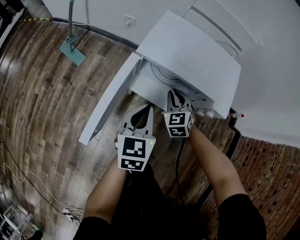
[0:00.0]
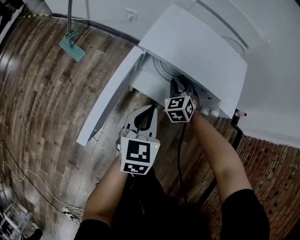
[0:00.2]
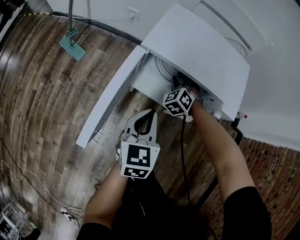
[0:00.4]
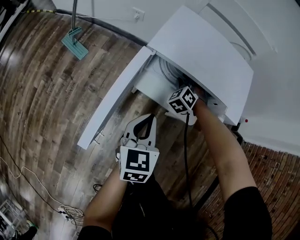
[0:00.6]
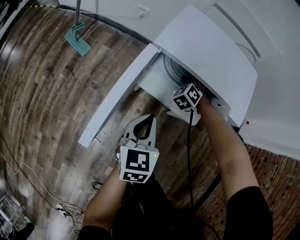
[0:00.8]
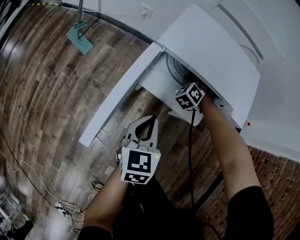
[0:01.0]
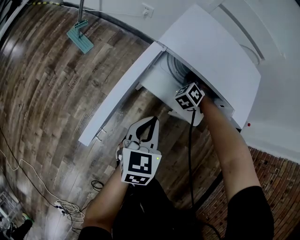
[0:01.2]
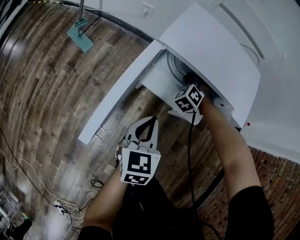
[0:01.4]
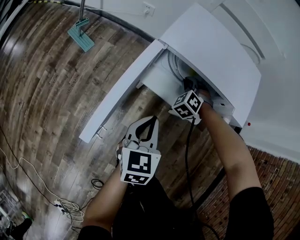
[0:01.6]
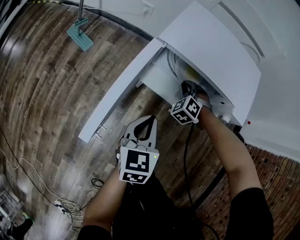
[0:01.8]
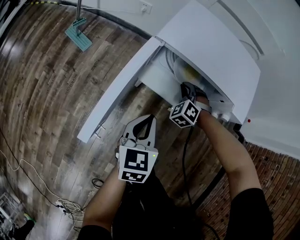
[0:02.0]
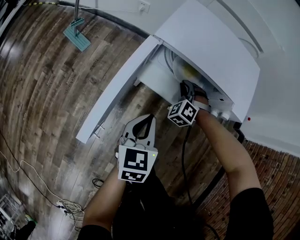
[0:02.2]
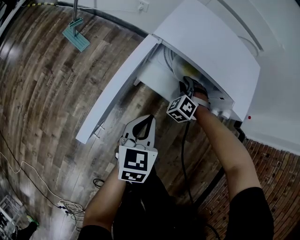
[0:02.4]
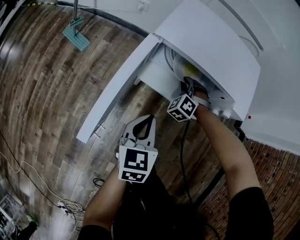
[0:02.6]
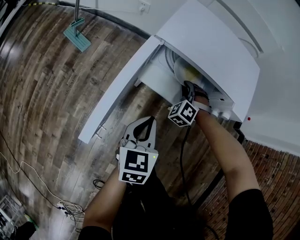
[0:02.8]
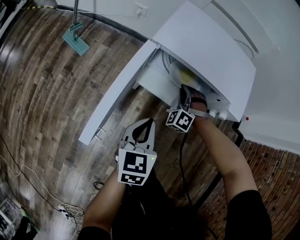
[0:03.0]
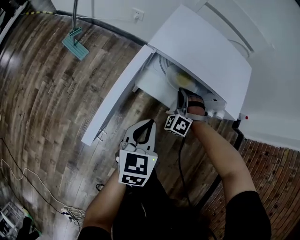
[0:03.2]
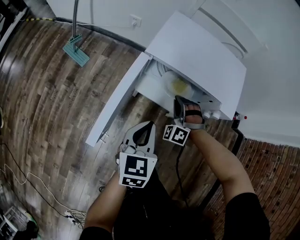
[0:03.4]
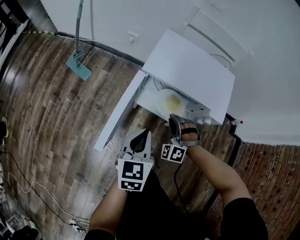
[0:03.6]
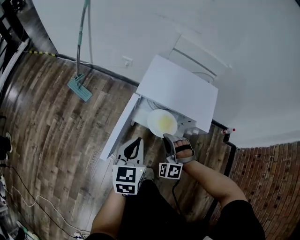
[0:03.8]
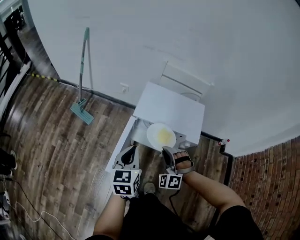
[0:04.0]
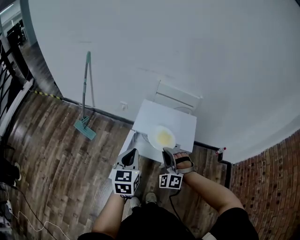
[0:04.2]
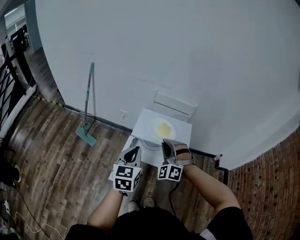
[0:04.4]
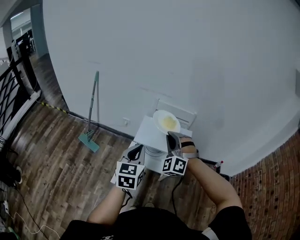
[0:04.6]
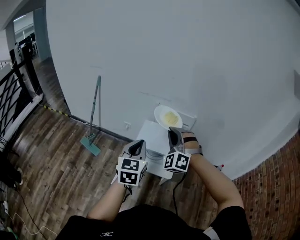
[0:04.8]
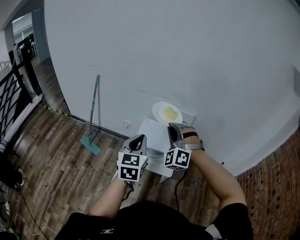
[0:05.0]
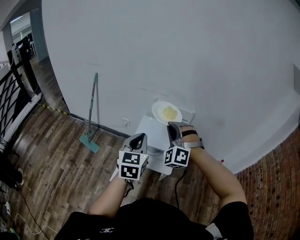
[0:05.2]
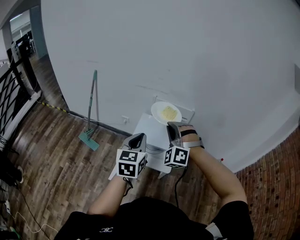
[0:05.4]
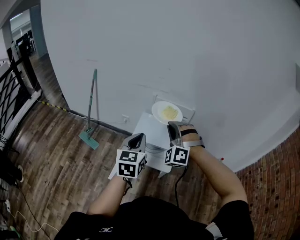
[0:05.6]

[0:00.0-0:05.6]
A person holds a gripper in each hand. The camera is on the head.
0.0 to 1.4 s: The right gripper travels downward and forward by some 10 cm, and rotates about 40 degrees; the left gripper shifts about 5 cm downward.
1.4 to 2.8 s: The right gripper moves backward, some 5 cm.
2.8 to 4.2 s: The two grippers go roughly 35 cm upward. The right gripper swivels roughly 20 degrees.
4.2 to 5.6 s: Both grippers travel together upward, approximately 15 cm.

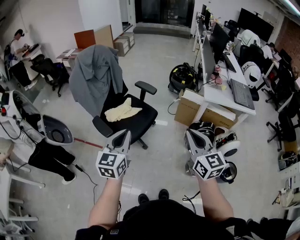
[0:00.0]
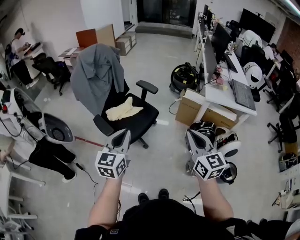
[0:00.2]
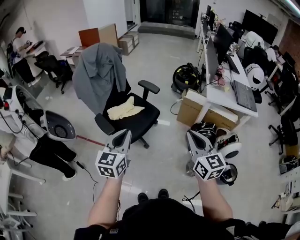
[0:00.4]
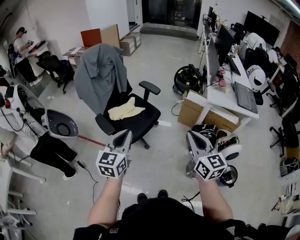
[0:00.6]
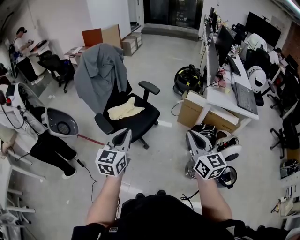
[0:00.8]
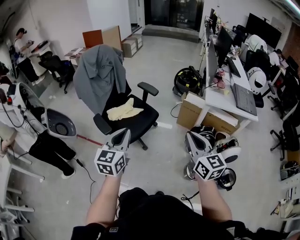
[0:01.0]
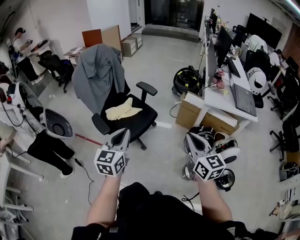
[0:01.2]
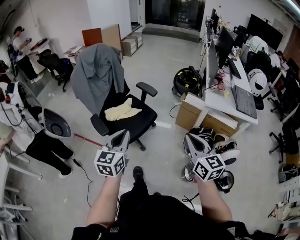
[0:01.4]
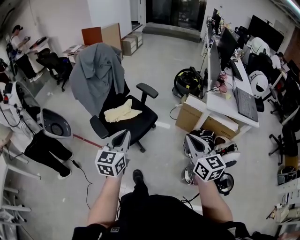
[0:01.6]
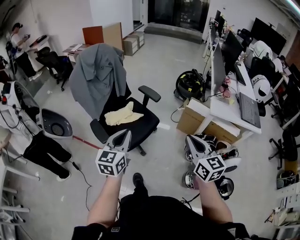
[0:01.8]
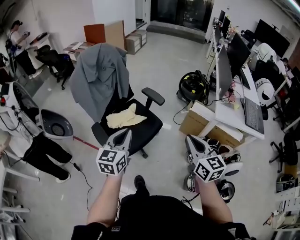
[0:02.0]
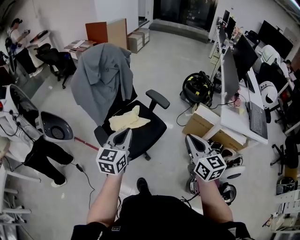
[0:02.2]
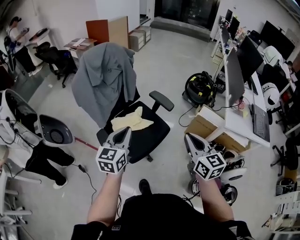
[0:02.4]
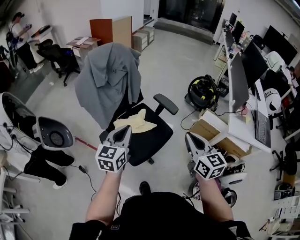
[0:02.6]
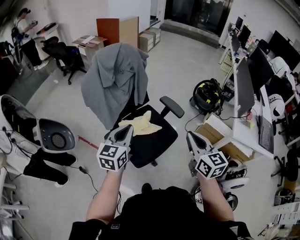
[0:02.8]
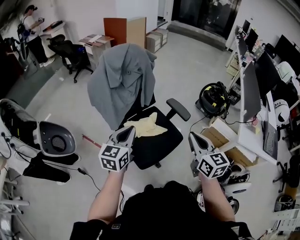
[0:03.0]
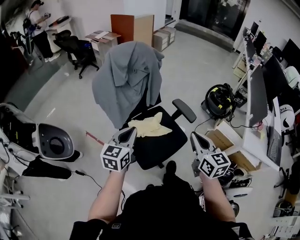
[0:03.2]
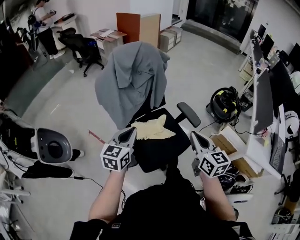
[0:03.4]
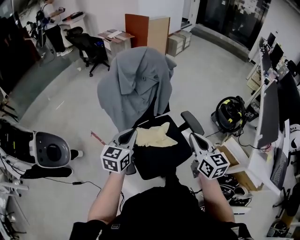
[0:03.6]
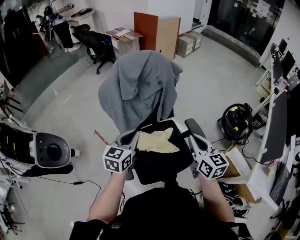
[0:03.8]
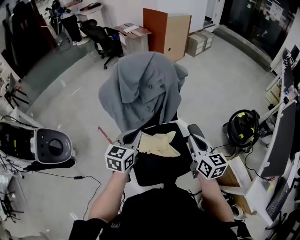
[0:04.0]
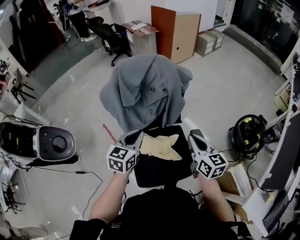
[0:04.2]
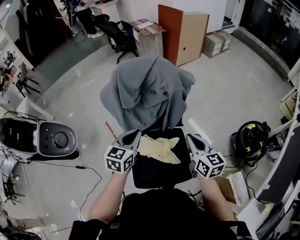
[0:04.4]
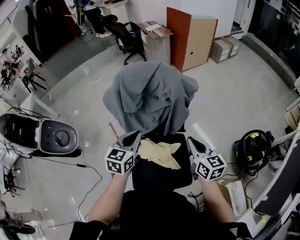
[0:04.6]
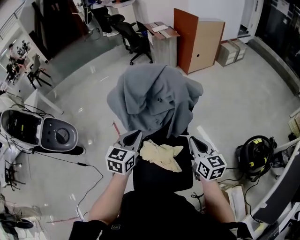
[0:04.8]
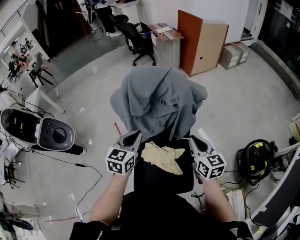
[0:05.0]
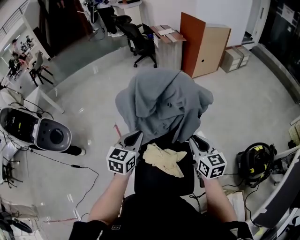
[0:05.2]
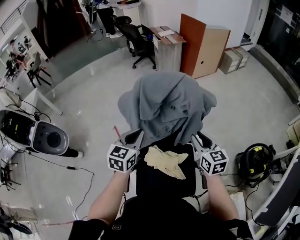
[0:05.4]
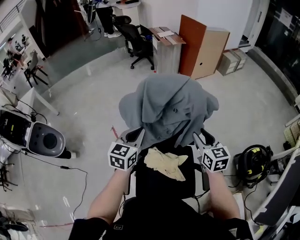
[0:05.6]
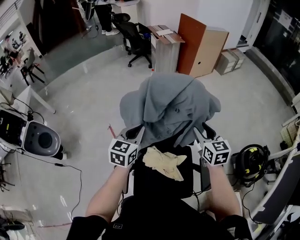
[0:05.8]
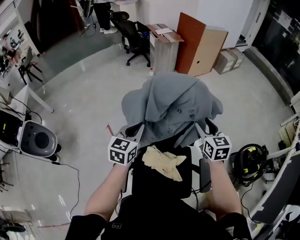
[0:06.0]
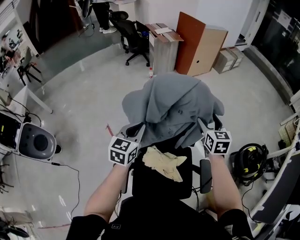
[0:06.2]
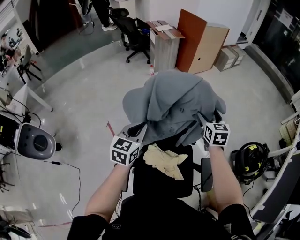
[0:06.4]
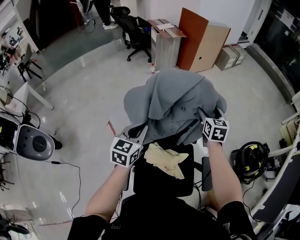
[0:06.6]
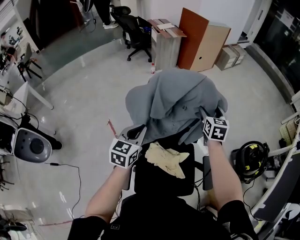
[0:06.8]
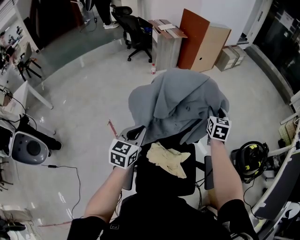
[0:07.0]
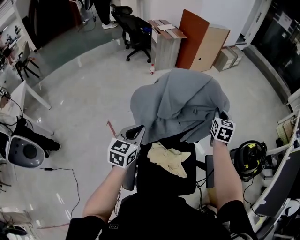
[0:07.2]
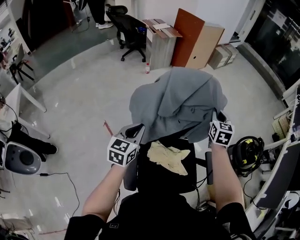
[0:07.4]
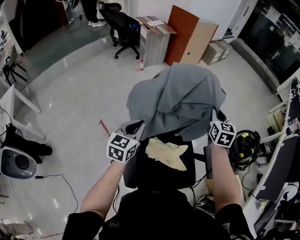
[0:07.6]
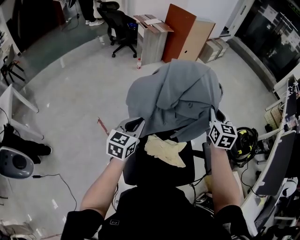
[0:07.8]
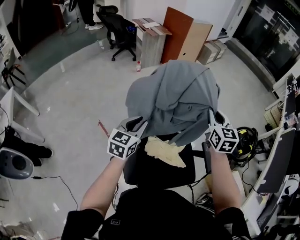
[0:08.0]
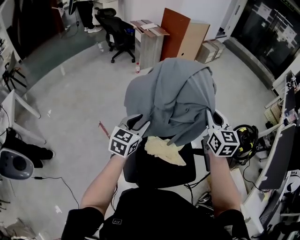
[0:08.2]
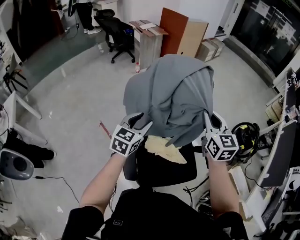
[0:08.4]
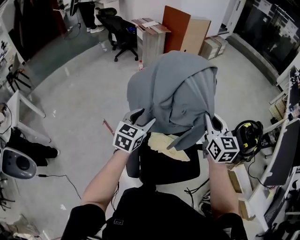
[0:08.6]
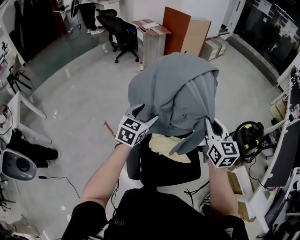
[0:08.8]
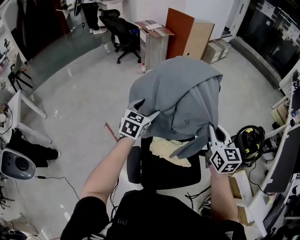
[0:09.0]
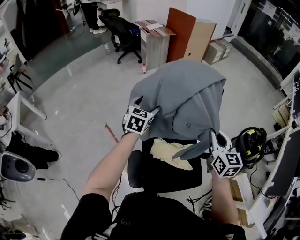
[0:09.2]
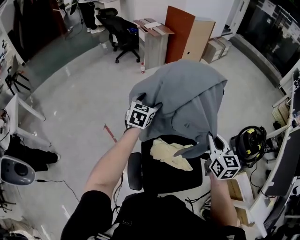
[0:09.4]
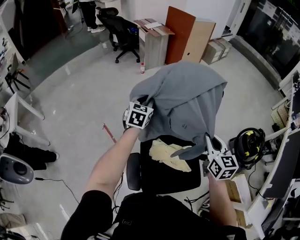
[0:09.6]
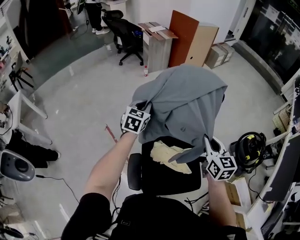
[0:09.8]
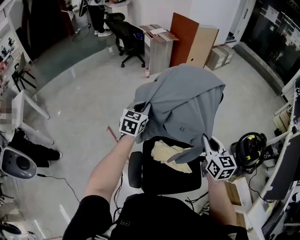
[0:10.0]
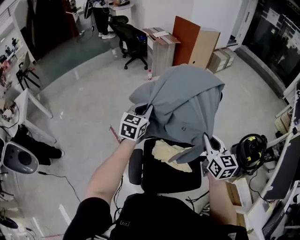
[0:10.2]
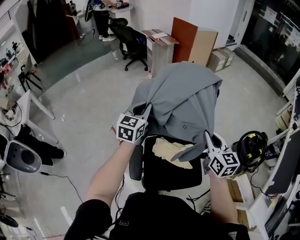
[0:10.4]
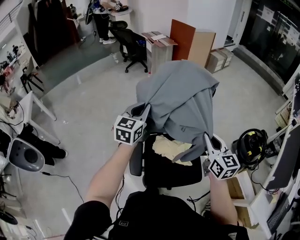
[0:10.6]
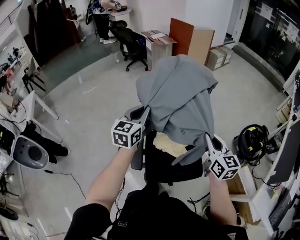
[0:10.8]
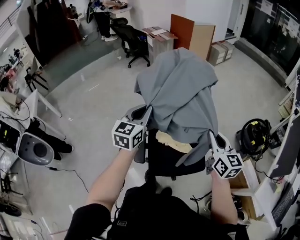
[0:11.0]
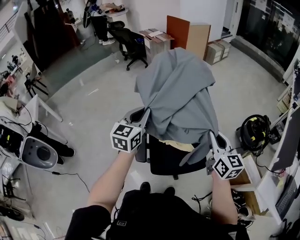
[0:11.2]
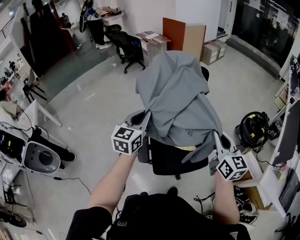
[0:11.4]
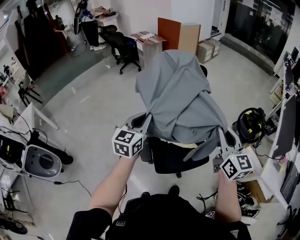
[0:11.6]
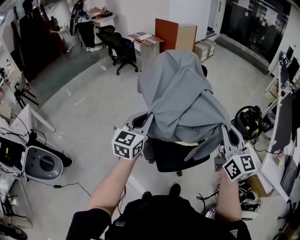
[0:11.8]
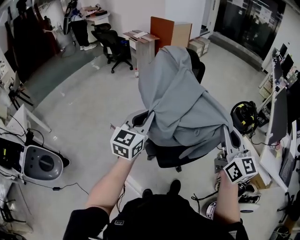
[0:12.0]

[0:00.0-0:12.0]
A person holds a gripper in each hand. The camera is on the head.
0.0 to 1.6 s: The left gripper shifts by some 5 cm; the right gripper heads forward, covering some 5 cm.
1.6 to 3.0 s: The two grippers go approximately 35 cm forward and to the left.
3.0 to 4.4 s: The right gripper shifts by roughly 35 cm, and changes its angle by some 30 degrees, while the left gripper moves some 25 cm, and rotates about 30 degrees.
4.4 to 6.0 s: The right gripper is displaced forward by some 20 cm, changes its angle by some 20 degrees, and opens its fingers. Meanwhile the left gripper travels forward and to the left by some 15 cm.
6.0 to 7.6 s: The right gripper moves about 10 cm forward and comes back, turns by roughly 20 degrees, and closes; the left gripper shifts about 5 cm to the left.
7.6 to 9.0 s: The right gripper heads backward, covering roughly 15 cm. The left gripper ends up some 5 cm from where it was, and opens up.
9.0 to 10.4 s: The right gripper shifts approximately 5 cm backward; the left gripper travels upward by some 5 cm, travels forward and back again, about 10 cm each way, and closes.
10.4 to 12.0 s: The left gripper goes some 25 cm backward. Meanwhile the right gripper moves backward and upward, approximately 30 cm, and rotates roughly 20 degrees.

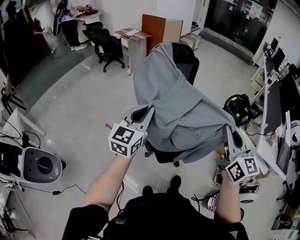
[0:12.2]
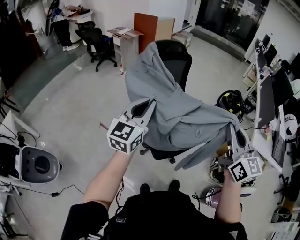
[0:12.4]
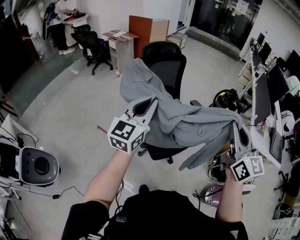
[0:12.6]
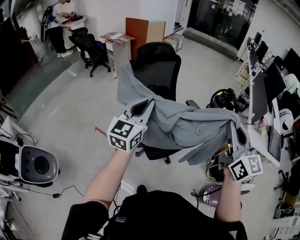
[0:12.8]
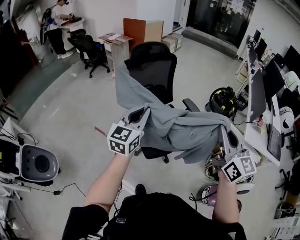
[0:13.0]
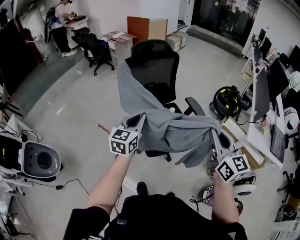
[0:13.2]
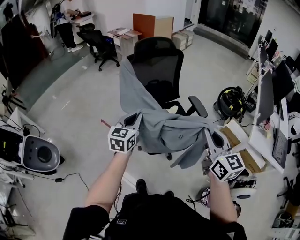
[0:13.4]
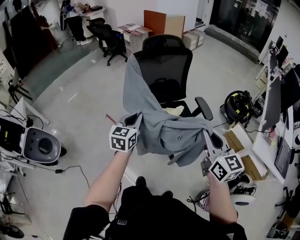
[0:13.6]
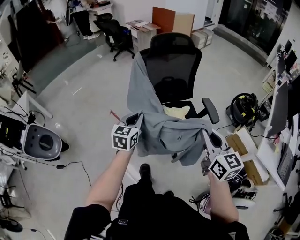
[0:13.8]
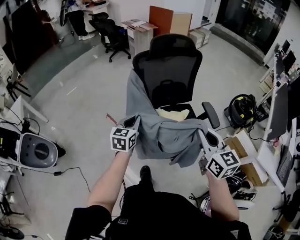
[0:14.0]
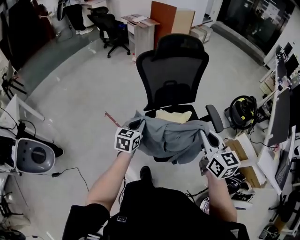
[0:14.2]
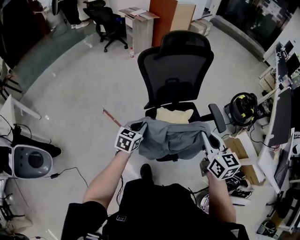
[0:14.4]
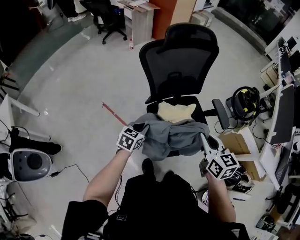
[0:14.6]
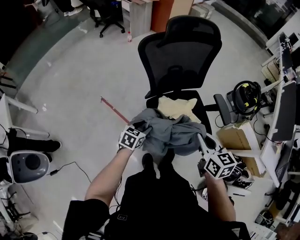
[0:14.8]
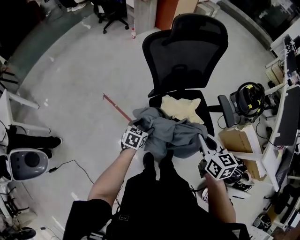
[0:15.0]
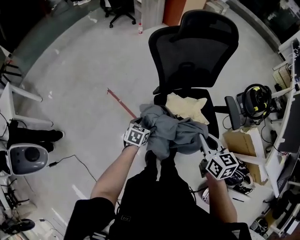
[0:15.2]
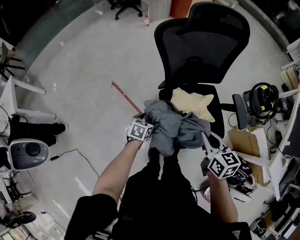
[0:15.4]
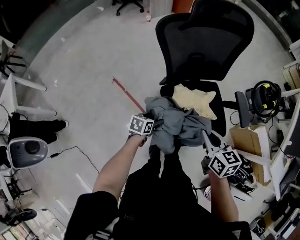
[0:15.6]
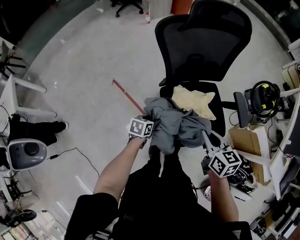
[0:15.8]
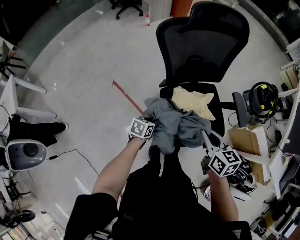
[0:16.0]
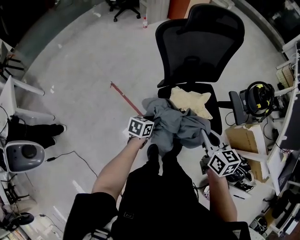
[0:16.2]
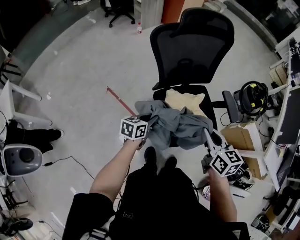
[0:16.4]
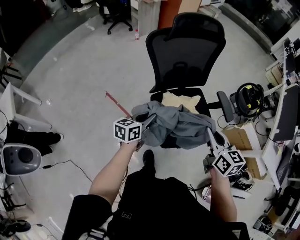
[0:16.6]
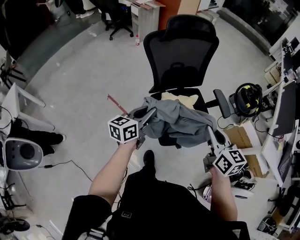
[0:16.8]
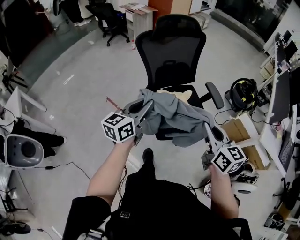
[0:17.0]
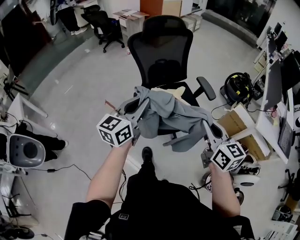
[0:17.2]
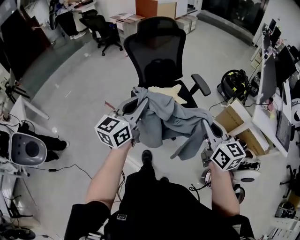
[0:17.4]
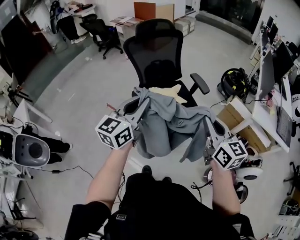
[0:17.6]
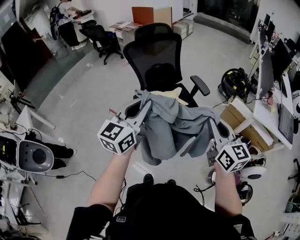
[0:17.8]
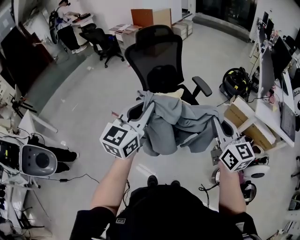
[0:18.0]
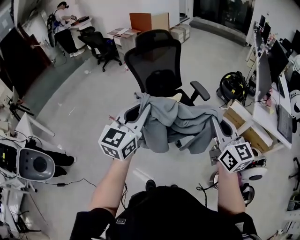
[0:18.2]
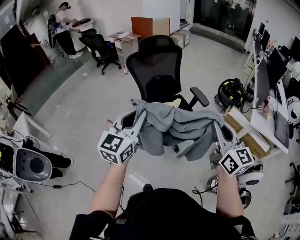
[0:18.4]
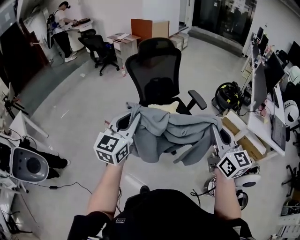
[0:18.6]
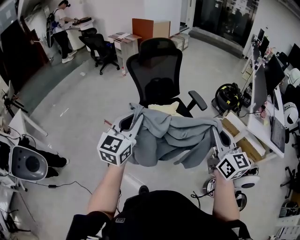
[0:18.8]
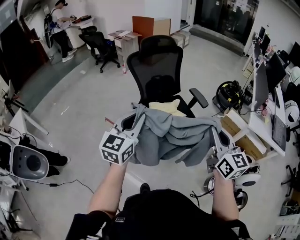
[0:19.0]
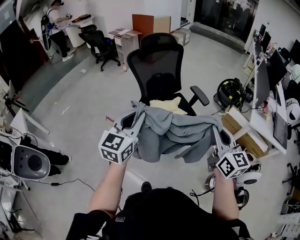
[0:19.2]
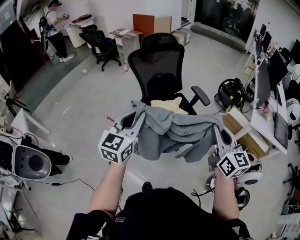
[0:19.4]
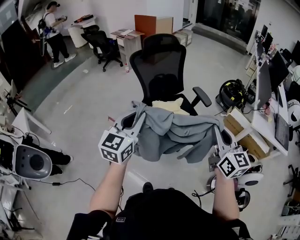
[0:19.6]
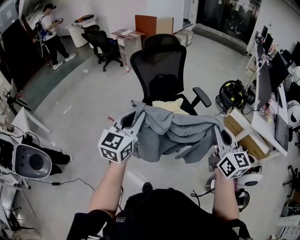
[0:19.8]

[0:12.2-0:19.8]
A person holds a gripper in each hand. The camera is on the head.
12.2 to 13.8 s: The left gripper shifts about 15 cm downward, and swivels roughly 30 degrees, while the right gripper travels downward by about 10 cm.
13.8 to 15.2 s: The left gripper moves downward and forward, approximately 35 cm, angles its fingers downward, by approximately 30 degrees, and opens up; the right gripper travels downward, forward and to the left by roughly 30 cm, and changes its angle by some 30 degrees.
15.2 to 16.8 s: The right gripper travels backward, upward and to the right by about 15 cm. The left gripper is displaced upward by some 25 cm, tips its fingers upward by approximately 40 degrees, and closes its fingers.
16.8 to 18.2 s: The right gripper is displaced backward, to the right and upward by roughly 30 cm, and changes its angle by approximately 20 degrees. Meanwhile the left gripper goes roughly 35 cm backward, upward and to the right, and rotates about 40 degrees.
18.2 to 19.8 s: The left gripper shifts roughly 5 cm to the left.
